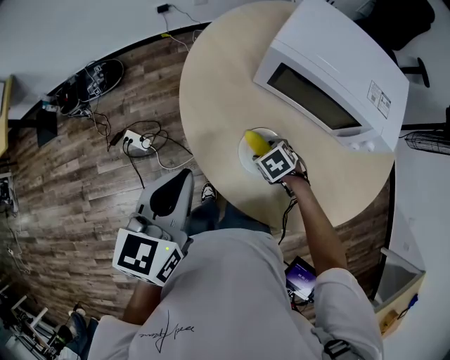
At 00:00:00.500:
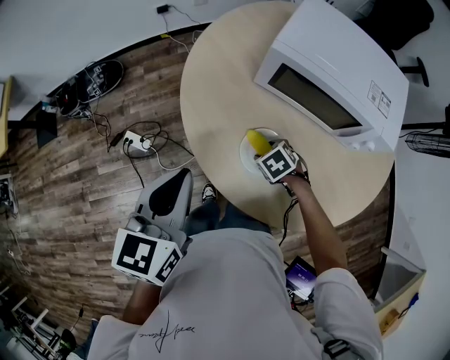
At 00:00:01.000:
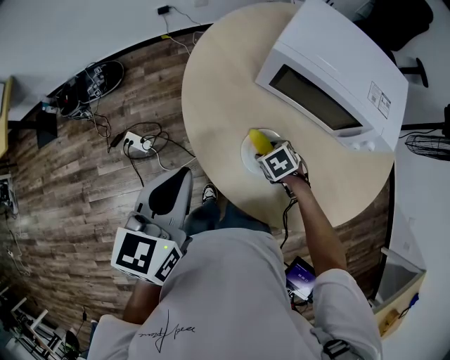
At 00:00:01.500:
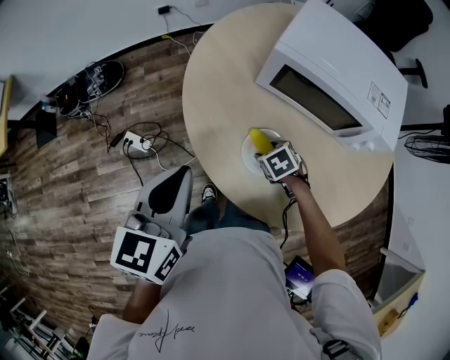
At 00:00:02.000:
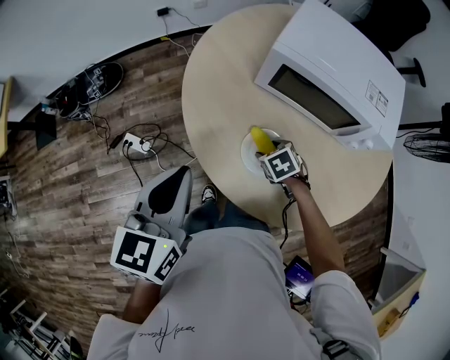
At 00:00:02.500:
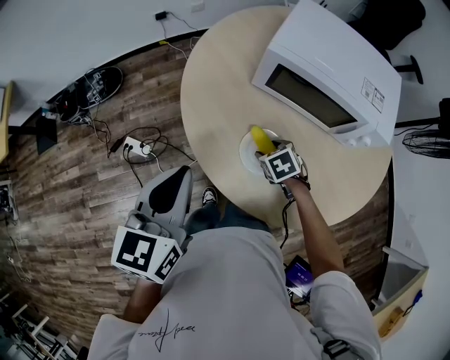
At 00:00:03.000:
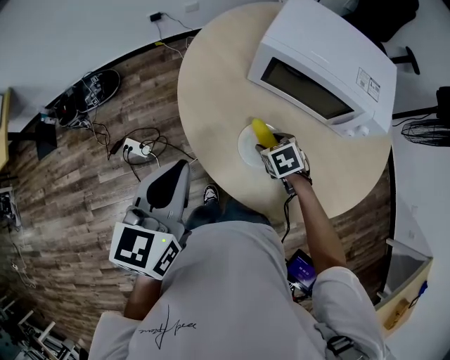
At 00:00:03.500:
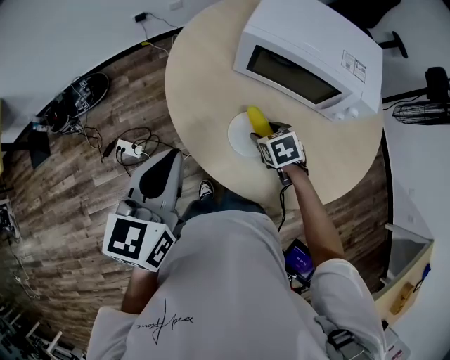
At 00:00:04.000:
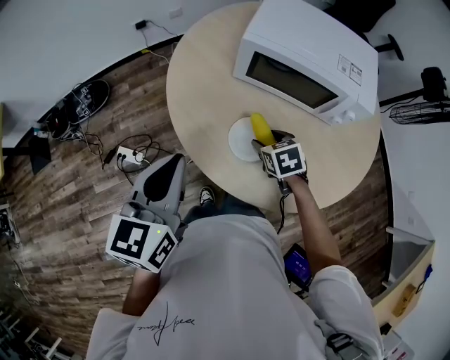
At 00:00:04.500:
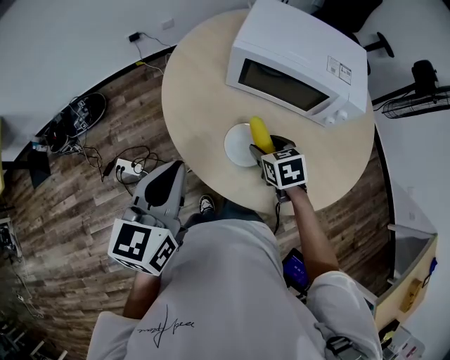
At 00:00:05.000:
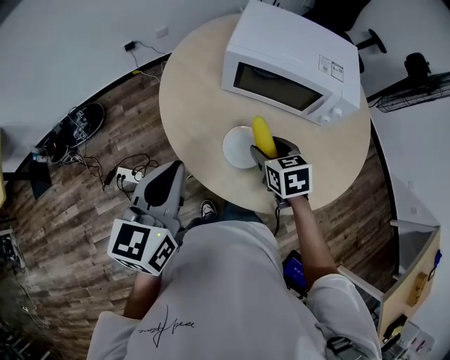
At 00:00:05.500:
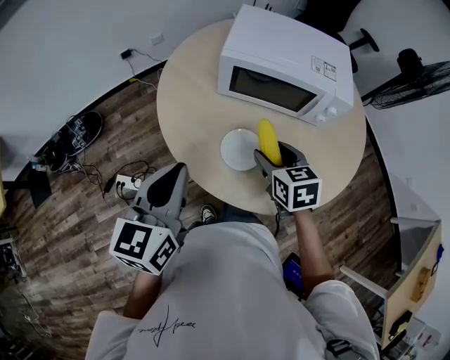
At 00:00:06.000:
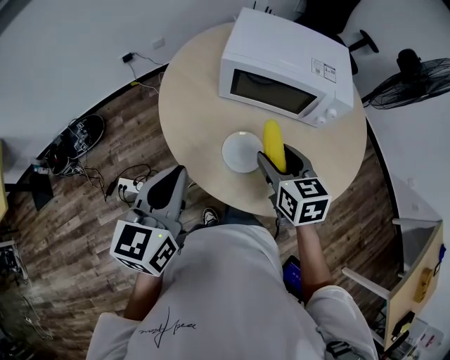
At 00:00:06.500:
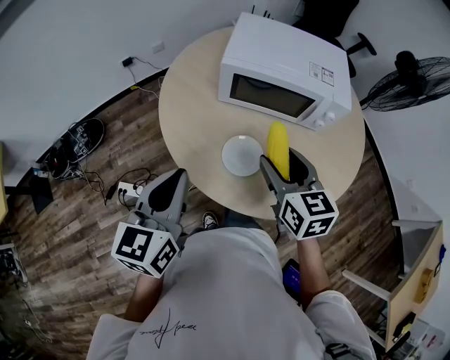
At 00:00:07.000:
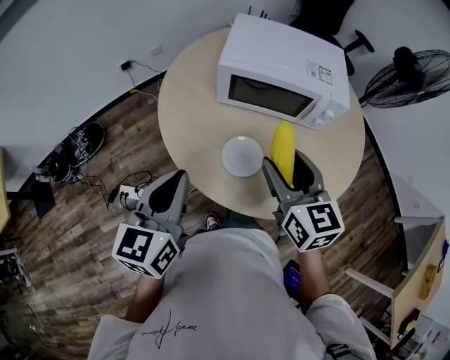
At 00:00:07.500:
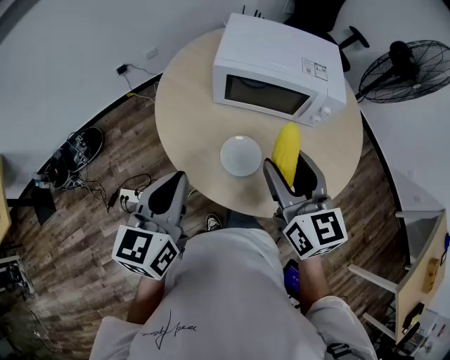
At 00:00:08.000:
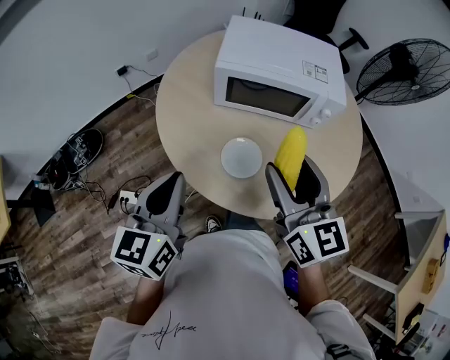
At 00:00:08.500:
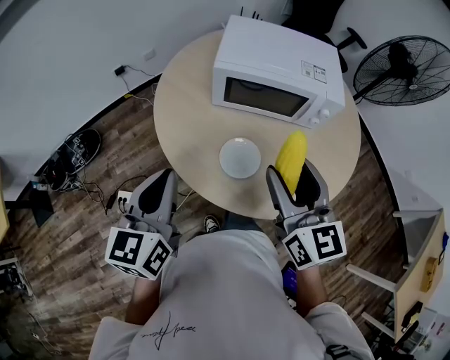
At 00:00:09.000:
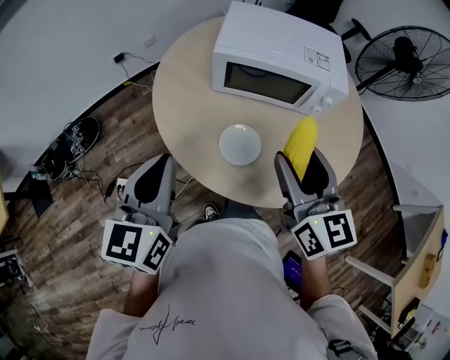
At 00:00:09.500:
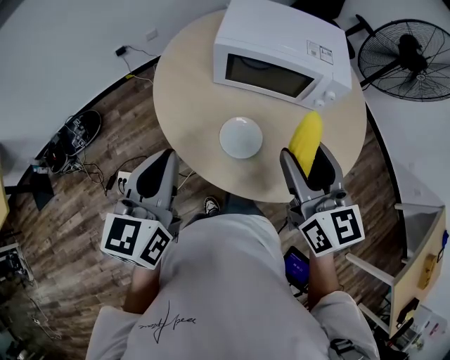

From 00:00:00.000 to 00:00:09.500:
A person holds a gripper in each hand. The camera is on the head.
From 00:00:00.000 to 00:00:02.000: There are only small adjustments of the grippers.
From 00:00:02.000 to 00:00:04.000: The right gripper heads upward, covering some 10 cm.
From 00:00:04.000 to 00:00:05.500: The right gripper moves upward, approximately 10 cm, and swivels approximately 20 degrees.
From 00:00:05.500 to 00:00:07.500: The right gripper travels upward by roughly 15 cm, and tips its fingers upward by some 30 degrees.
From 00:00:07.500 to 00:00:09.500: The grippers make only small movements.

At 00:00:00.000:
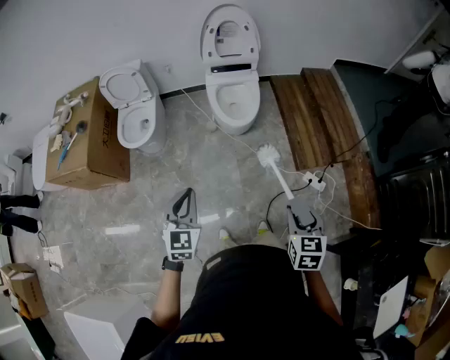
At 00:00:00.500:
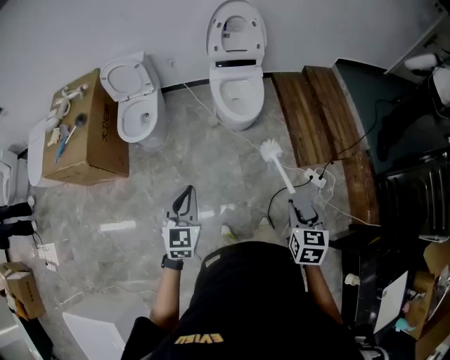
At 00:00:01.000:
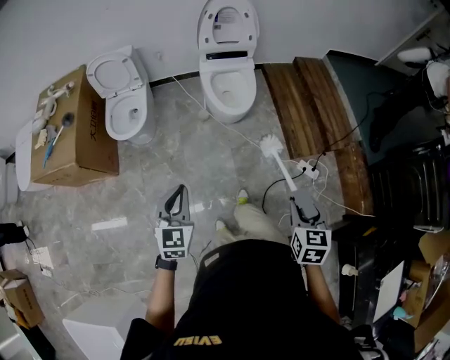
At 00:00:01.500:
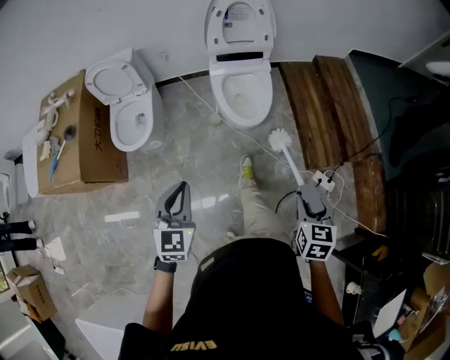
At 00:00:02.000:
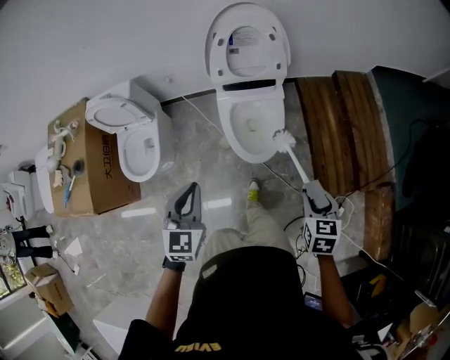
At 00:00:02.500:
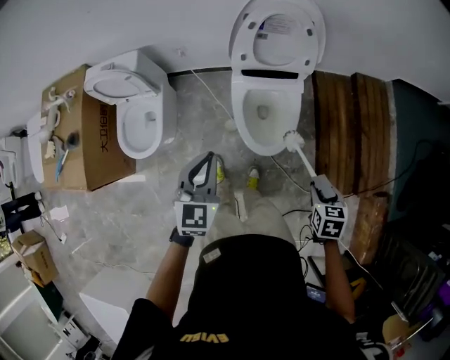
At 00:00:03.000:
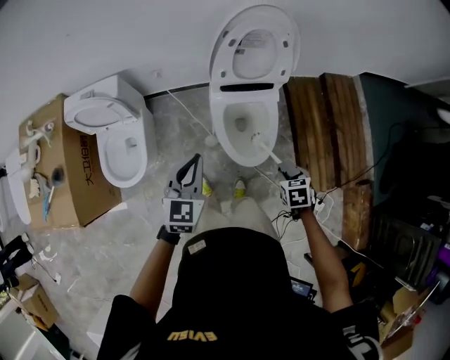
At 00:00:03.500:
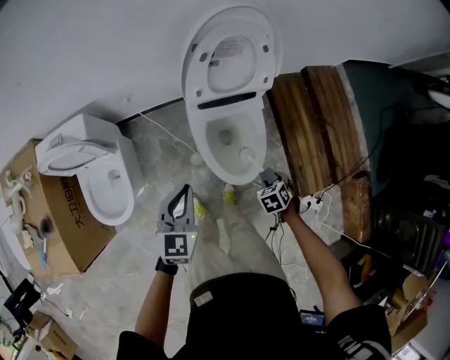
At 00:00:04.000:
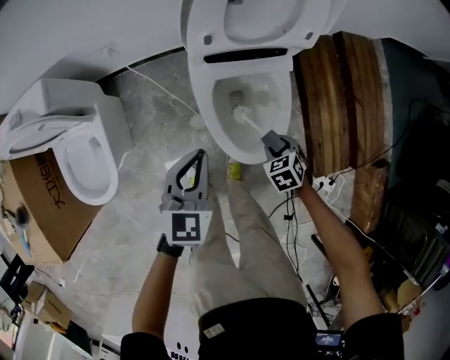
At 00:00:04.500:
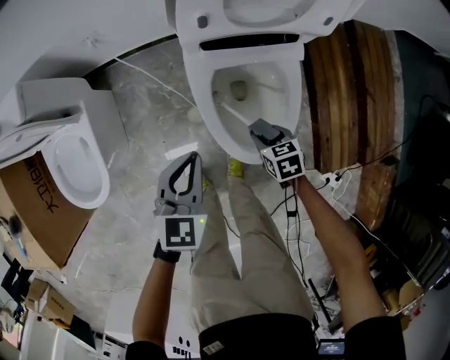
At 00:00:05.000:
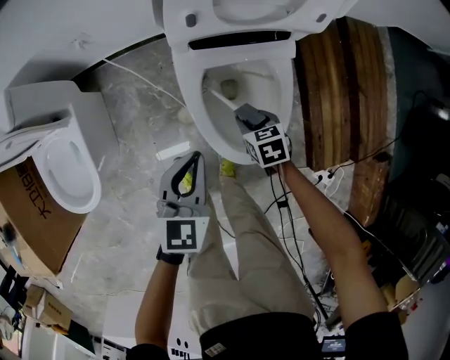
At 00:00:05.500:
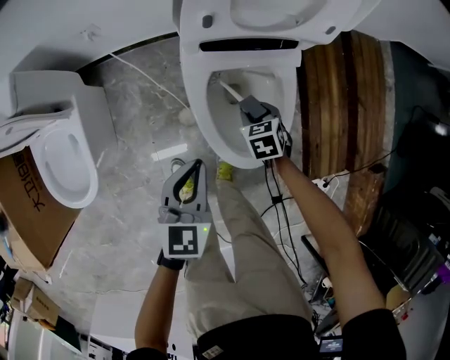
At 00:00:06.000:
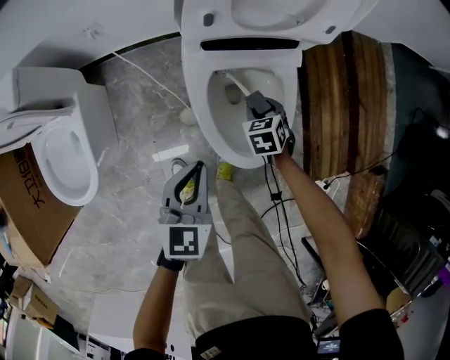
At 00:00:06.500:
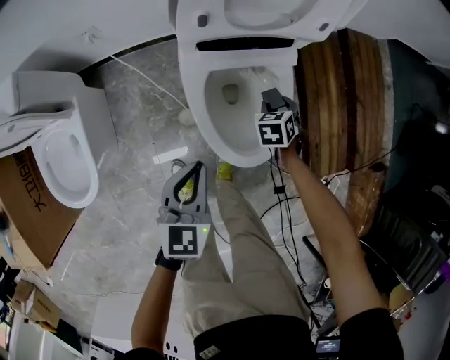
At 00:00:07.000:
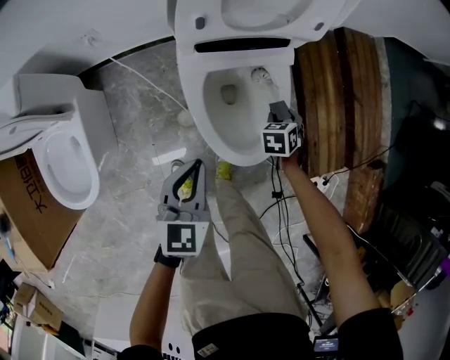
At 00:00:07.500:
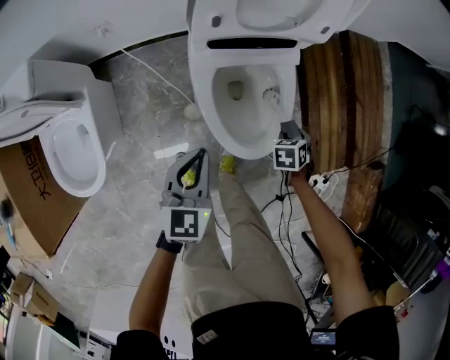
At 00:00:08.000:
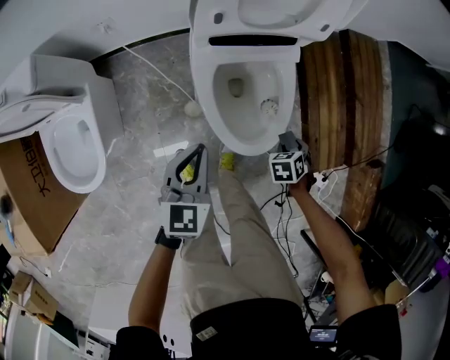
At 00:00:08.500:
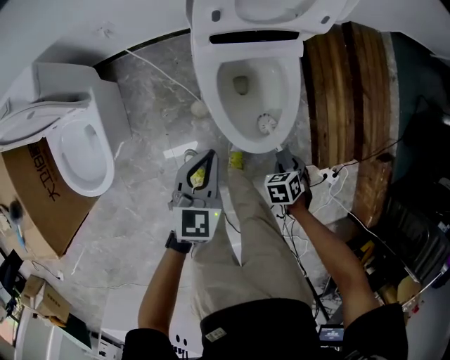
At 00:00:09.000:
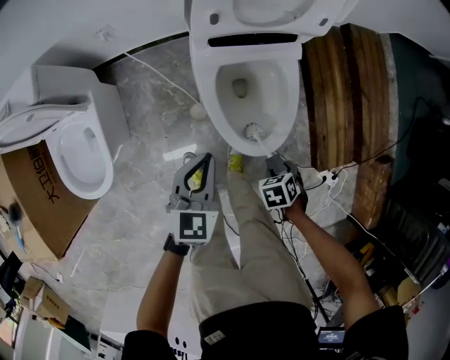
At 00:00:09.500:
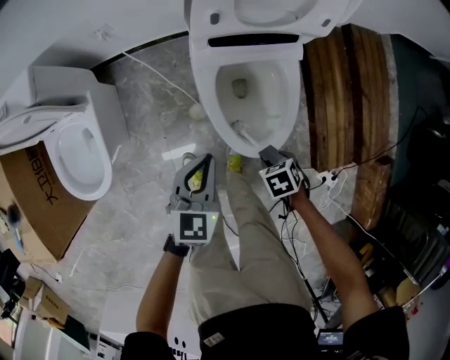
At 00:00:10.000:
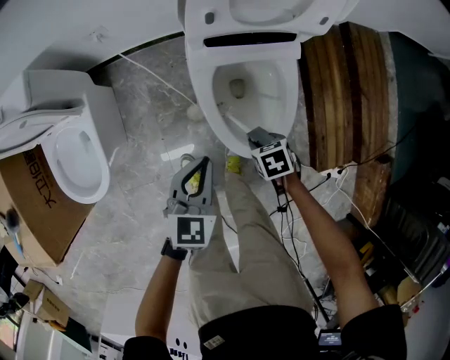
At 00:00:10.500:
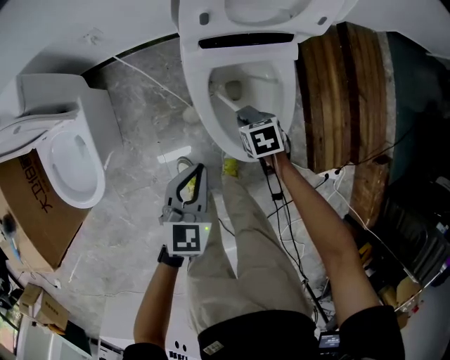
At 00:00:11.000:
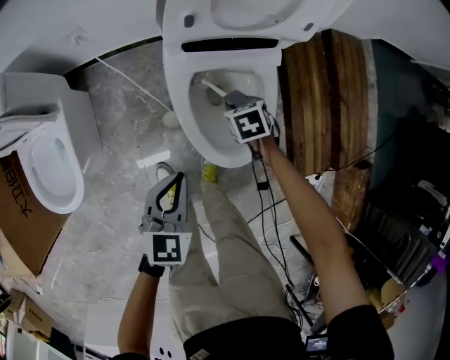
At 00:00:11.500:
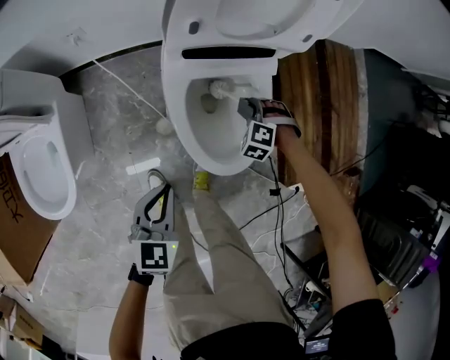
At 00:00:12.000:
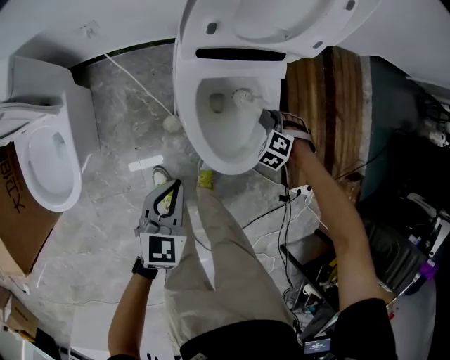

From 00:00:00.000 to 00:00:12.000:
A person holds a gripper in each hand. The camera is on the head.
From 00:00:00.000 to 00:00:02.000: The two grippers travel together, forward, some 50 cm.
From 00:00:02.000 to 00:00:04.000: The left gripper heads downward and forward, covering approximately 40 cm; the right gripper heads downward, forward and to the left, covering some 50 cm, and turns by some 40 degrees.
From 00:00:04.000 to 00:00:06.000: The left gripper goes some 10 cm downward. Meanwhile the right gripper moves forward and downward, approximately 15 cm.
From 00:00:06.000 to 00:00:08.000: The right gripper moves some 20 cm, and rotates about 20 degrees.
From 00:00:08.000 to 00:00:10.000: The right gripper moves roughly 10 cm, and rotates roughly 30 degrees.
From 00:00:10.000 to 00:00:12.000: The right gripper moves roughly 15 cm, and twists some 60 degrees counterclockwise, seen from behind.

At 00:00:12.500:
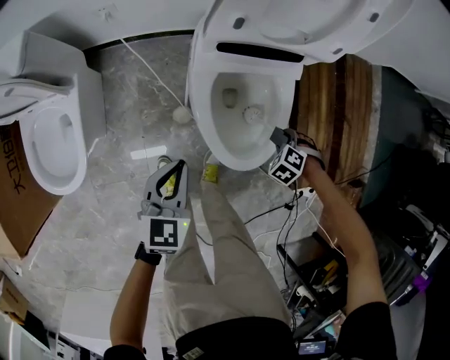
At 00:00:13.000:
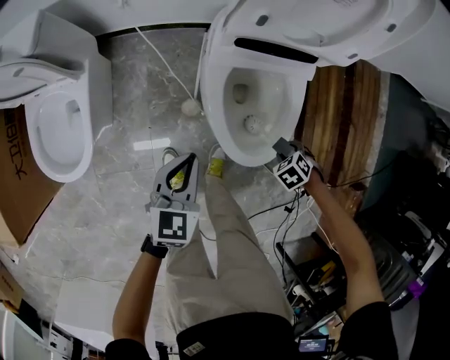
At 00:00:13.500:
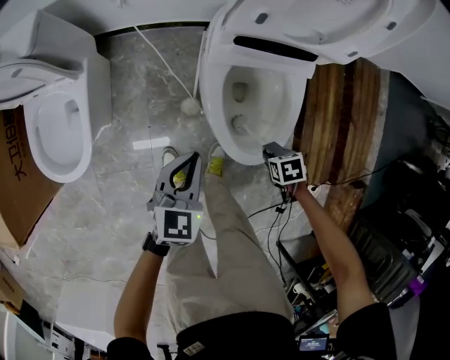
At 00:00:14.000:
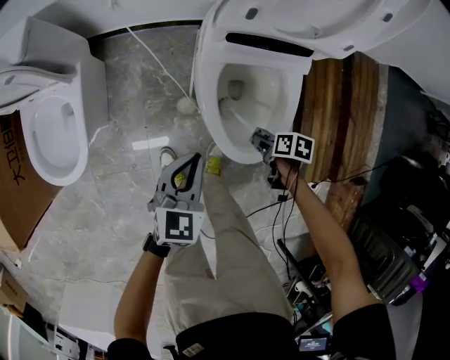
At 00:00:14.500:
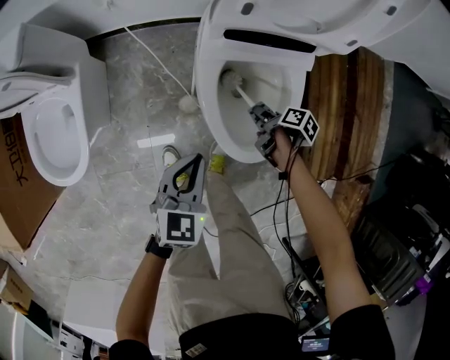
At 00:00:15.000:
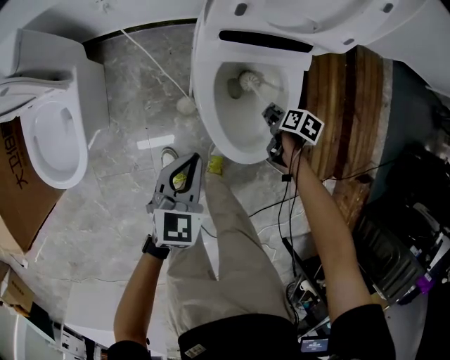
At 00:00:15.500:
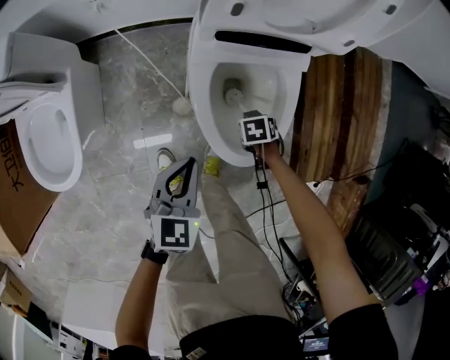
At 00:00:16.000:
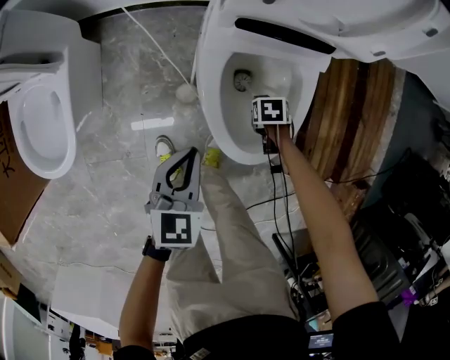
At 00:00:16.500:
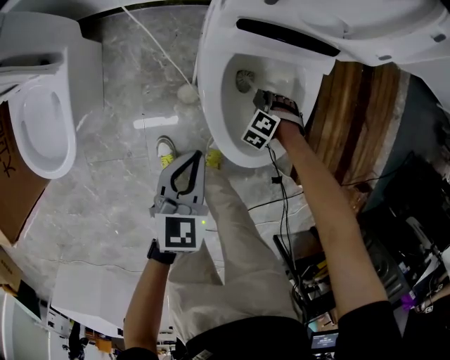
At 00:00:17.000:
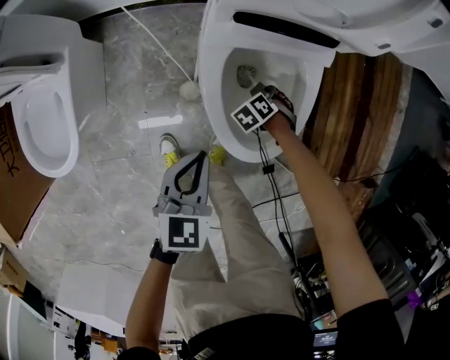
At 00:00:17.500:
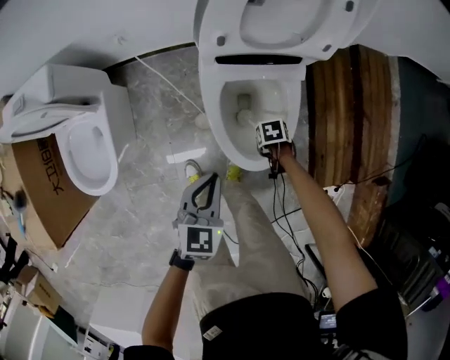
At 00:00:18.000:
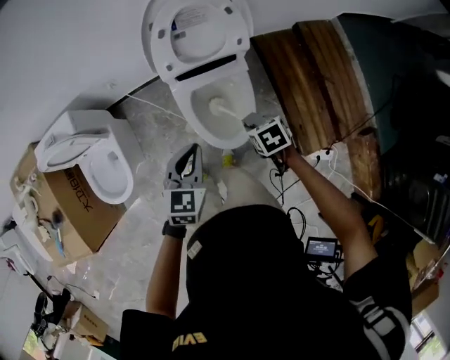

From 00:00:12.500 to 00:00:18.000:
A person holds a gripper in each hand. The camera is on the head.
From 00:00:12.500 to 00:00:14.500: The right gripper changes place by roughly 10 cm, and rolls clockwise, seen from behind, by some 120 degrees.
From 00:00:14.500 to 00:00:16.000: The right gripper goes roughly 10 cm downward, and rotates around the line of its fingers by about 60 degrees, counterclockwise from behind.
From 00:00:16.000 to 00:00:18.000: The grippers both shift upward by roughly 40 cm. The right gripper rotates about 20 degrees.
